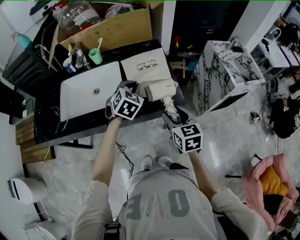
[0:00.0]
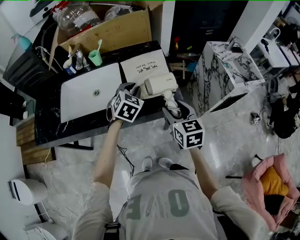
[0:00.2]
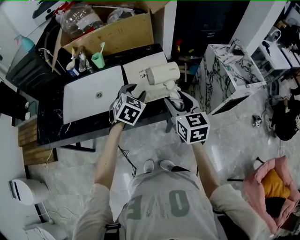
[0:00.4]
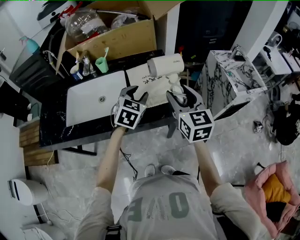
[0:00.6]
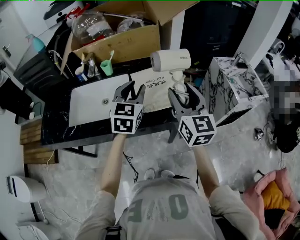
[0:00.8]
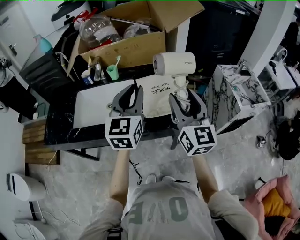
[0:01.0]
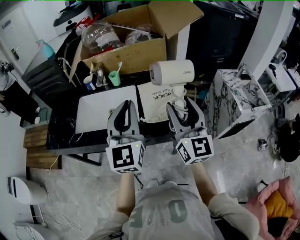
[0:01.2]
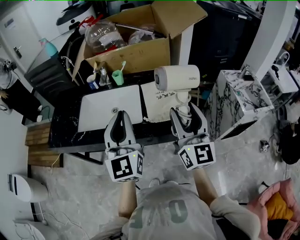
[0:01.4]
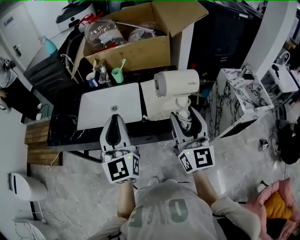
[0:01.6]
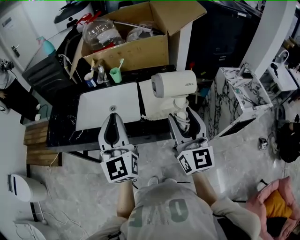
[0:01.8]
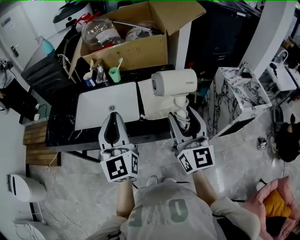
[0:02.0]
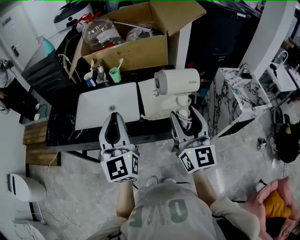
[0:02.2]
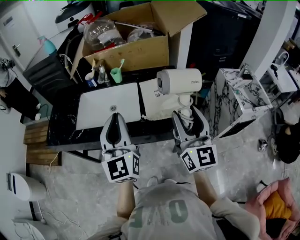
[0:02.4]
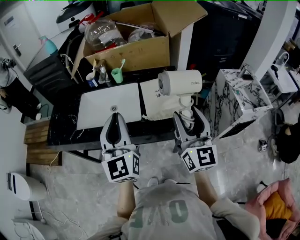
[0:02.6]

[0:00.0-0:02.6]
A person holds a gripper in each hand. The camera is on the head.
0:00.0 to 0:01.2: The left gripper goes approximately 25 cm upward and backward, and tilts its fingers about 50 degrees upward. Meanwhile the right gripper goes roughly 20 cm upward, and points its fingers about 40 degrees further upward.
0:01.2 to 0:02.6: The left gripper shifts some 5 cm to the left.

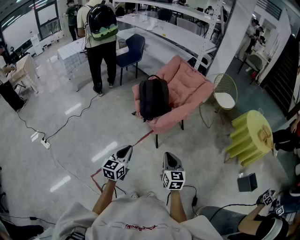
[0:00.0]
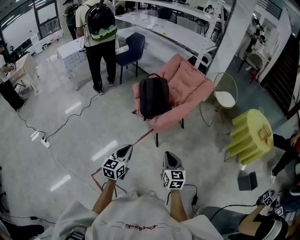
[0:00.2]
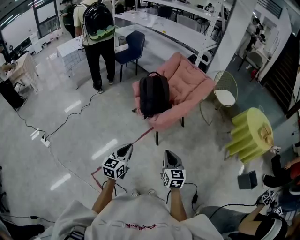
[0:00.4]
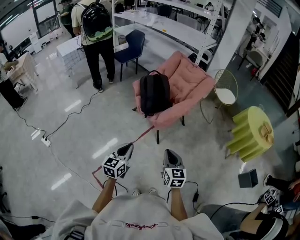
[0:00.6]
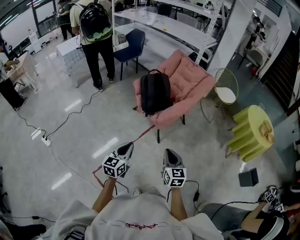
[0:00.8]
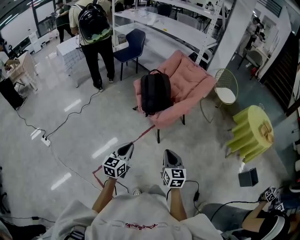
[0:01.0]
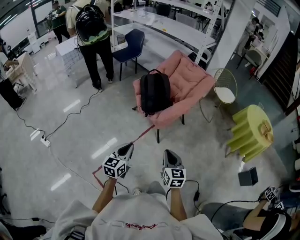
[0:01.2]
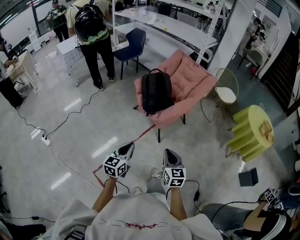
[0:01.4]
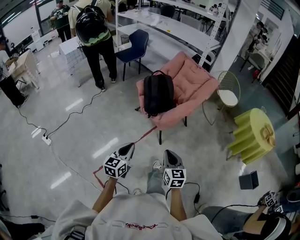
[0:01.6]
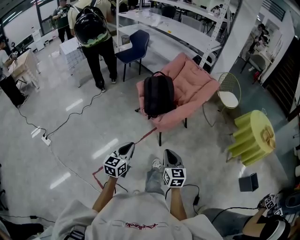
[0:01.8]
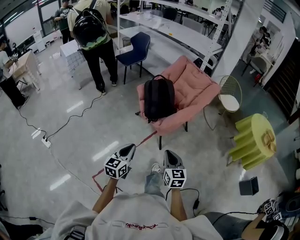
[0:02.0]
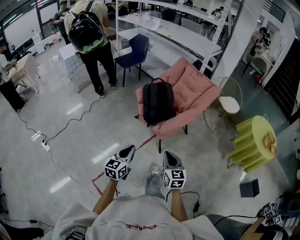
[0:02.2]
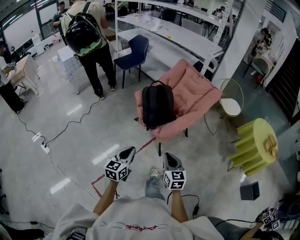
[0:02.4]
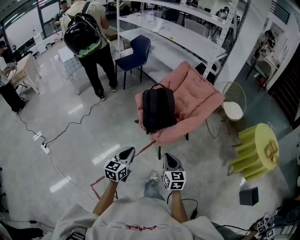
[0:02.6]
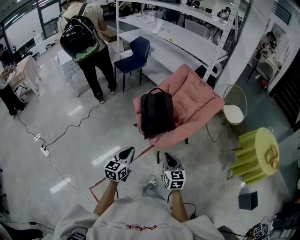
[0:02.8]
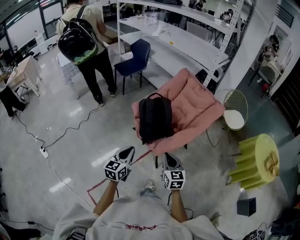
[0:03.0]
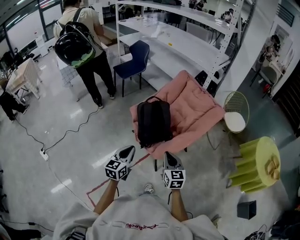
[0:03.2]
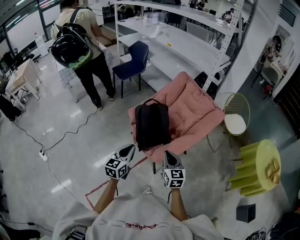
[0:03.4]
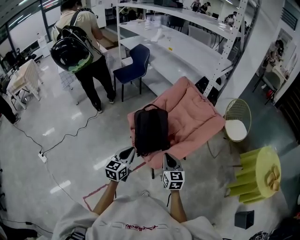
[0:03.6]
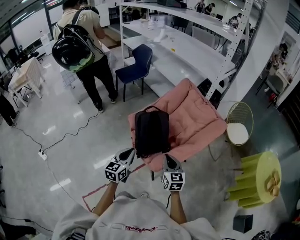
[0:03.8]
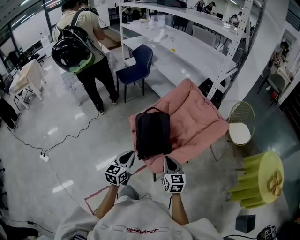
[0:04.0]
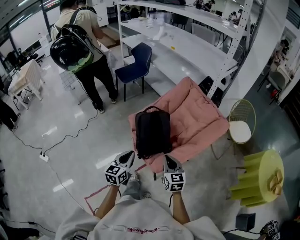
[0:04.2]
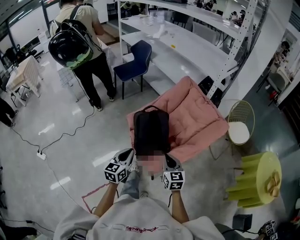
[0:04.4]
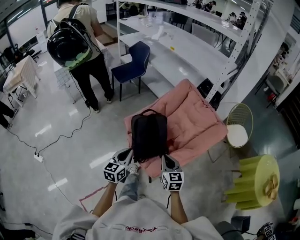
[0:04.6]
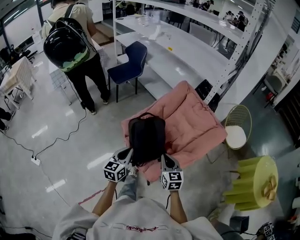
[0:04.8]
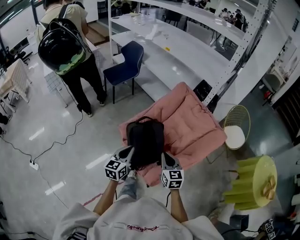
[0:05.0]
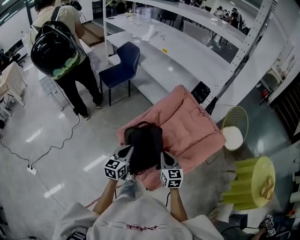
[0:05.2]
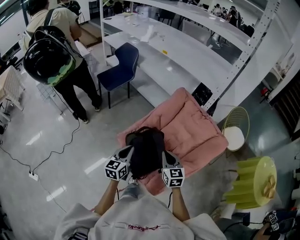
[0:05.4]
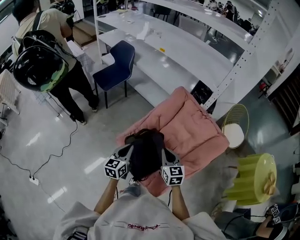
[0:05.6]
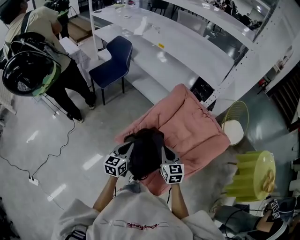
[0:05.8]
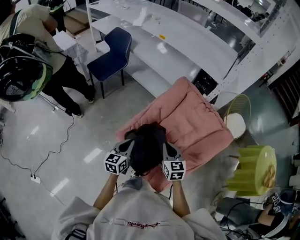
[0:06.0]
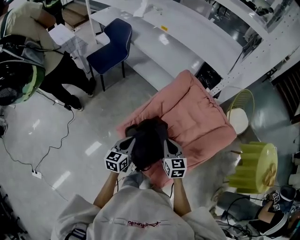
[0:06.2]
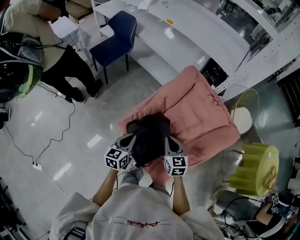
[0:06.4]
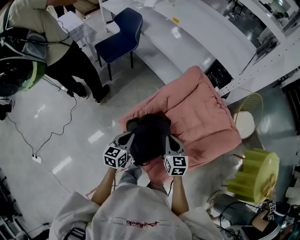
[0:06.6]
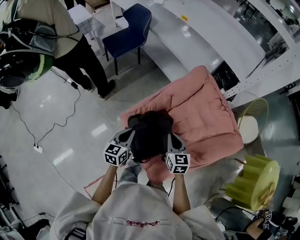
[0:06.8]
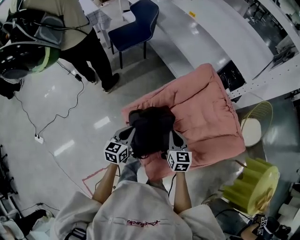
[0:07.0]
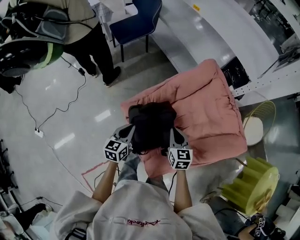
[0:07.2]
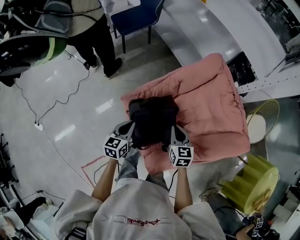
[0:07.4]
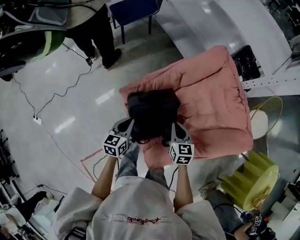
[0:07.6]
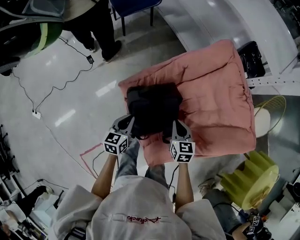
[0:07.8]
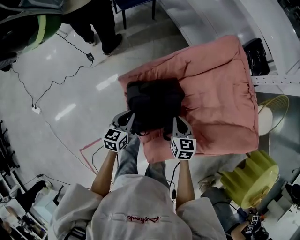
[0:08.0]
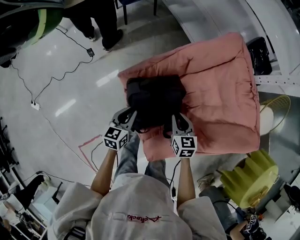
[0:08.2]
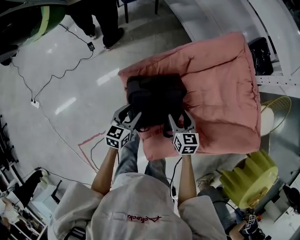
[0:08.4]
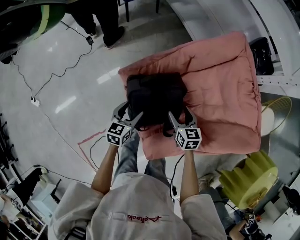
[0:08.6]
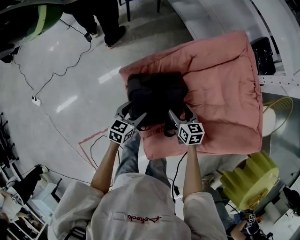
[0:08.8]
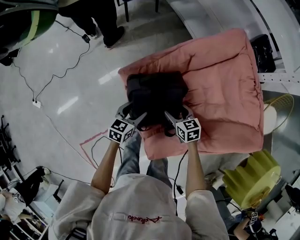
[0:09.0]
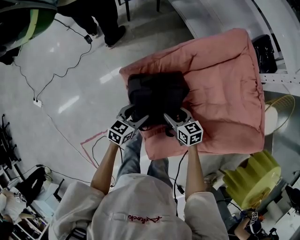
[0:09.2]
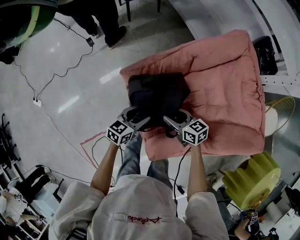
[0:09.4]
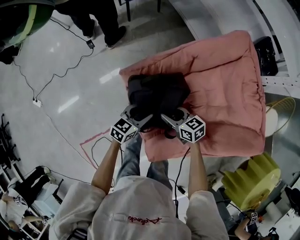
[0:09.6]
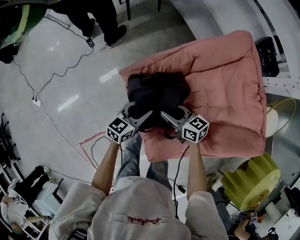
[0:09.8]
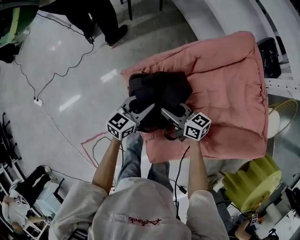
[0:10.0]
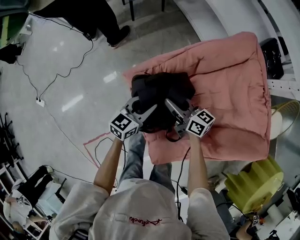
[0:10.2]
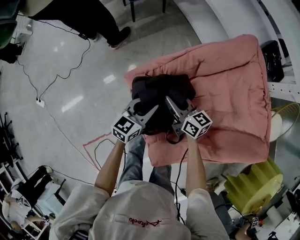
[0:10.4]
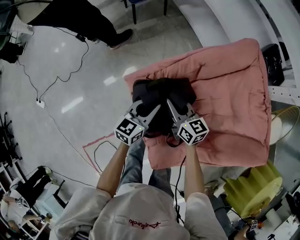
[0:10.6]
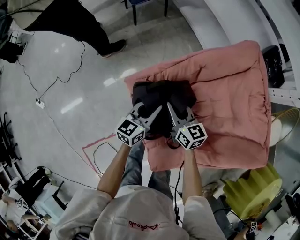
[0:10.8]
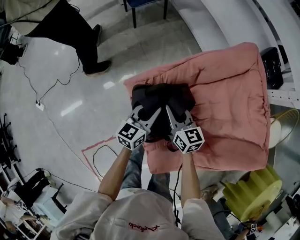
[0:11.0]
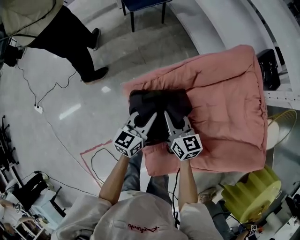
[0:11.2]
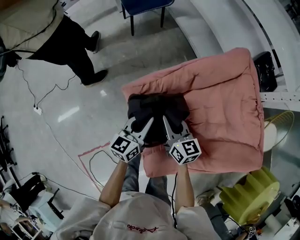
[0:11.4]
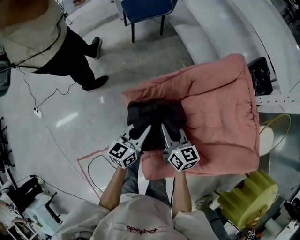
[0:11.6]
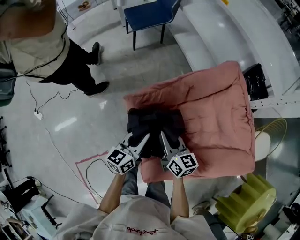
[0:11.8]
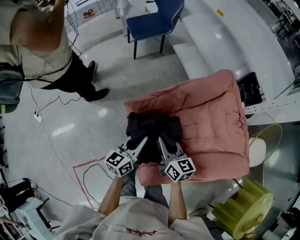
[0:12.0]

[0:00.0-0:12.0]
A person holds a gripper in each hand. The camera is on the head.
0:00.0 to 0:01.6: The grippers make only small movements.
0:01.6 to 0:03.0: Both grippers travel together forward, roughly 30 cm.
0:03.0 to 0:04.4: The two grippers go approximately 15 cm forward.
0:04.4 to 0:06.0: Both grippers move forward, approximately 30 cm.
0:06.0 to 0:07.6: The two grippers go approximately 15 cm downward. The left gripper rotates roughly 20 degrees.
0:07.6 to 0:09.0: The grippers both shift downward by some 10 cm. The left gripper opens. Meanwhile the right gripper turns by some 20 degrees, and opens up.
0:09.0 to 0:10.4: The left gripper is displaced forward and upward by some 10 cm, and closes. The right gripper heads forward, upward and to the left, covering some 15 cm, swivels some 30 degrees, and closes.
0:10.4 to 0:12.0: Both grippers travel together upward and backward, approximately 15 cm. The left gripper changes its angle by approximately 20 degrees.

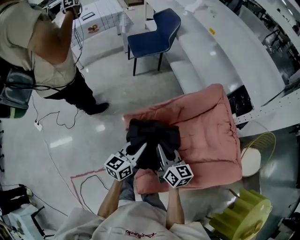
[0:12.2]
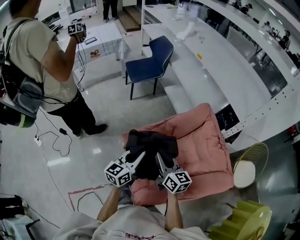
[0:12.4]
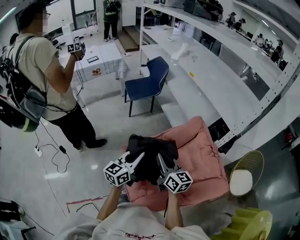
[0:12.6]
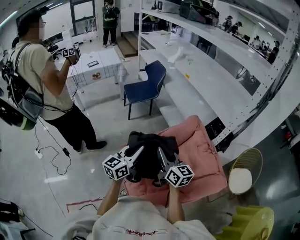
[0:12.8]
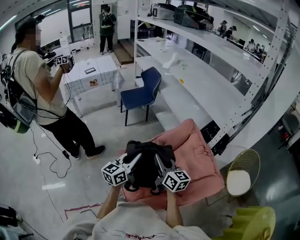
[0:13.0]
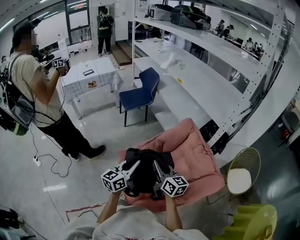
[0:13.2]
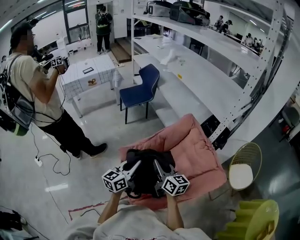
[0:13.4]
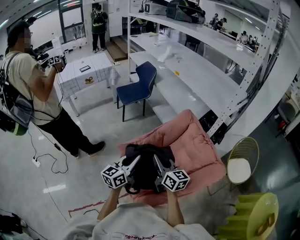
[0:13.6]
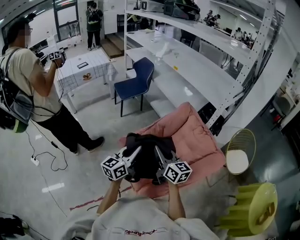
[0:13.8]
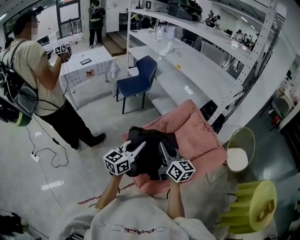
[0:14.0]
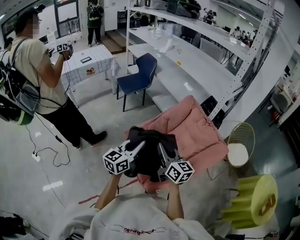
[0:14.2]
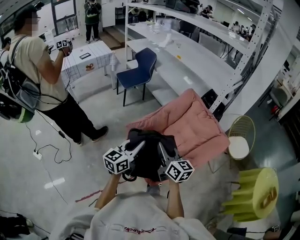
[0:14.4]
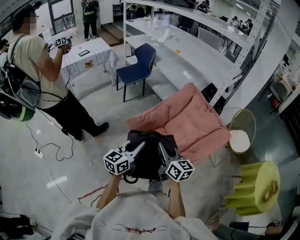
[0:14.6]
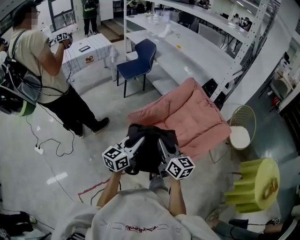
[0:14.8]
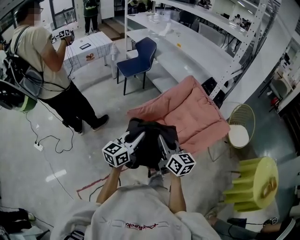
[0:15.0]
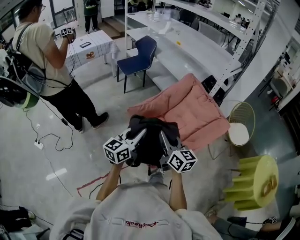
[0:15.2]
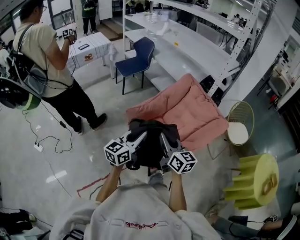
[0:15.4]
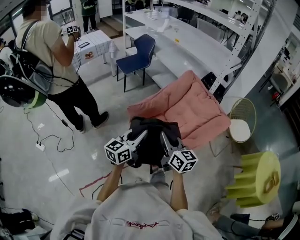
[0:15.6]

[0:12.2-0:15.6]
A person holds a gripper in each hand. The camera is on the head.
0:12.2 to 0:13.8: The right gripper goes up and down, approximately 20 cm each way, reversing 2 times. The left gripper moves up and down over roughly 20 cm, changing direction 2 times.
0:13.8 to 0:15.6: Both grippers move backward, roughly 20 cm.

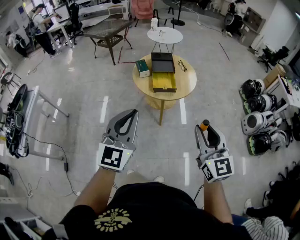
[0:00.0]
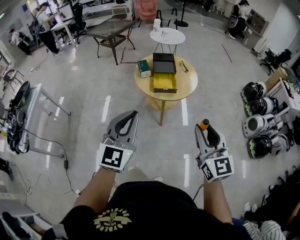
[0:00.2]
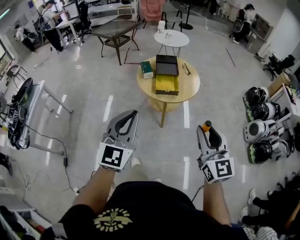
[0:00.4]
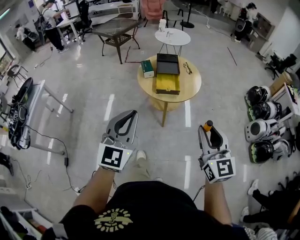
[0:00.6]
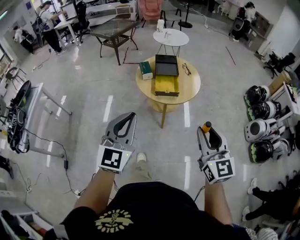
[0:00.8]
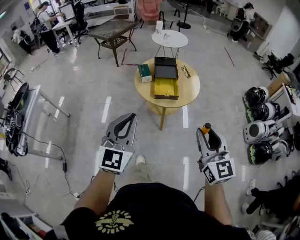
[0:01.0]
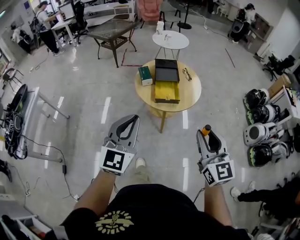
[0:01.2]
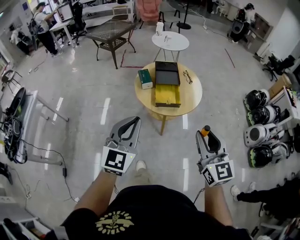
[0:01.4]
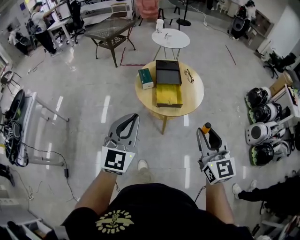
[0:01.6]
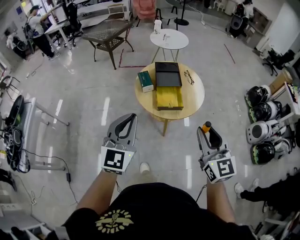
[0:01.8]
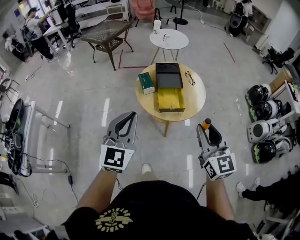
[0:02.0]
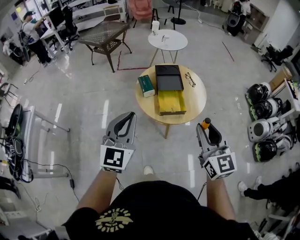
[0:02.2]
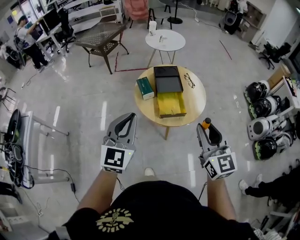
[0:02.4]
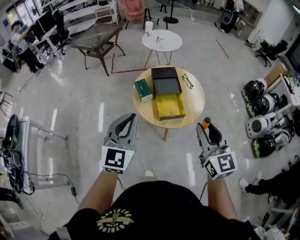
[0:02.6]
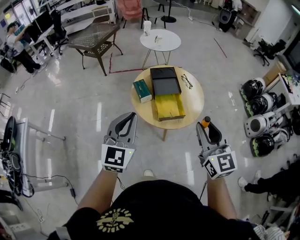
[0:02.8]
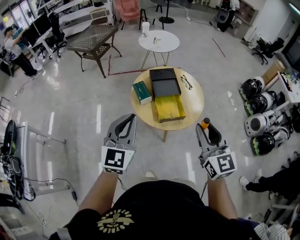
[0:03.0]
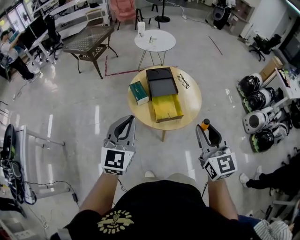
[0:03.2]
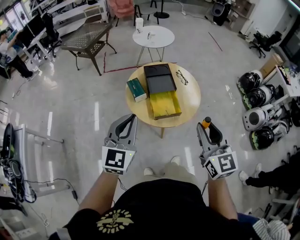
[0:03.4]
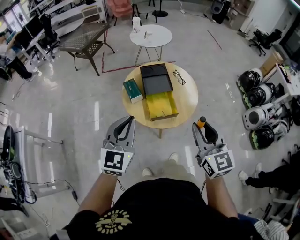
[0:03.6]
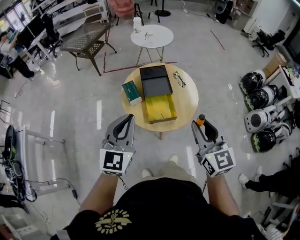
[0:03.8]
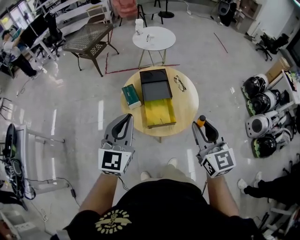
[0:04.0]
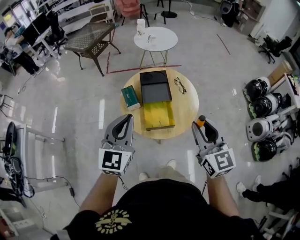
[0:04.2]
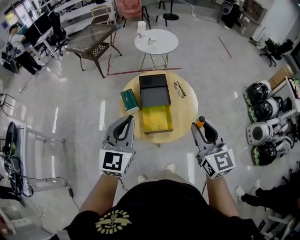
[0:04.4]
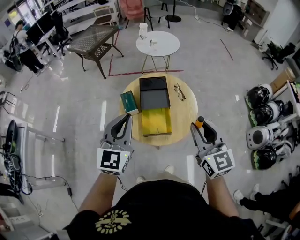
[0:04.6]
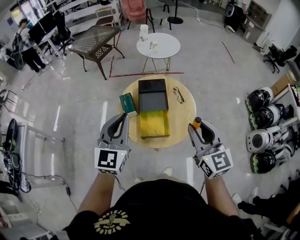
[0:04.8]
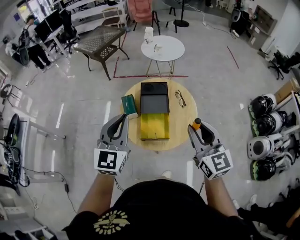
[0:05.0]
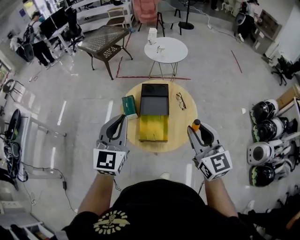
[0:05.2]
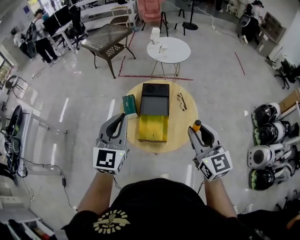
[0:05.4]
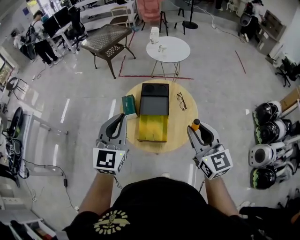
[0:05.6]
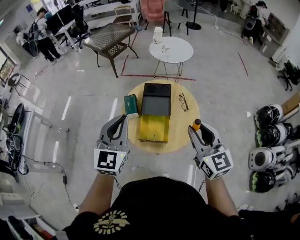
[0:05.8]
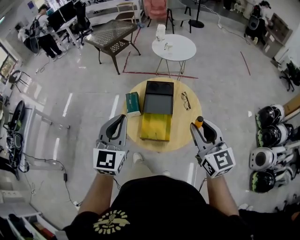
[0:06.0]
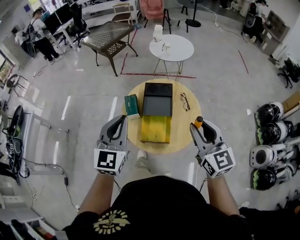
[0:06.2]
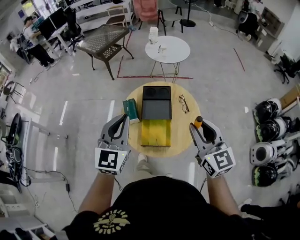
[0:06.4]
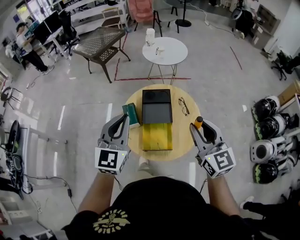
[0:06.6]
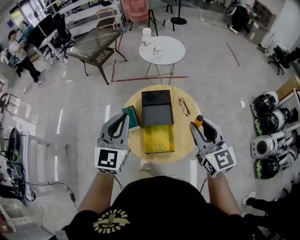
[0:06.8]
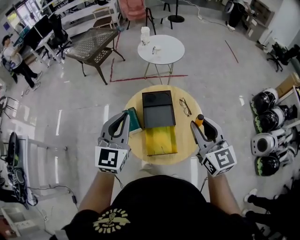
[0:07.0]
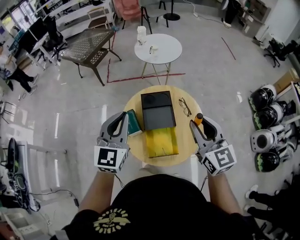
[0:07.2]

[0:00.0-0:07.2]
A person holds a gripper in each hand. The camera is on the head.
0:00.0 to 0:01.4: Both grippers move forward, about 15 cm.
0:01.4 to 0:02.8: Both grippers move forward and to the left, roughly 20 cm.
0:02.8 to 0:04.4: The right gripper moves forward and to the right, approximately 15 cm. The left gripper is displaced to the right and forward by some 15 cm.
0:04.4 to 0:05.8: The right gripper travels forward and to the right by approximately 10 cm; the left gripper shifts by roughly 5 cm.
0:05.8 to 0:07.2: The left gripper goes roughly 15 cm forward. Meanwhile the right gripper moves forward and to the left, roughly 15 cm.
